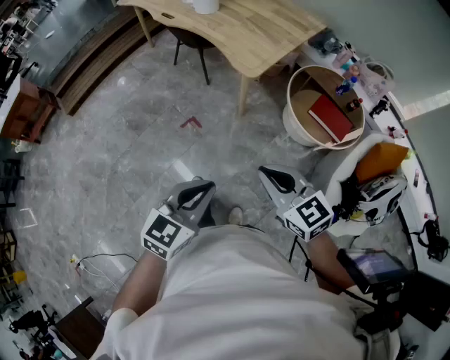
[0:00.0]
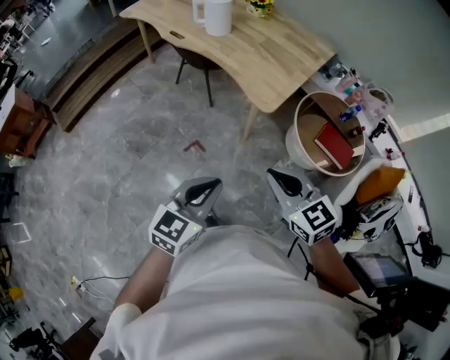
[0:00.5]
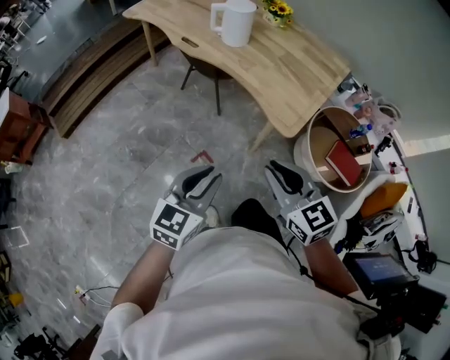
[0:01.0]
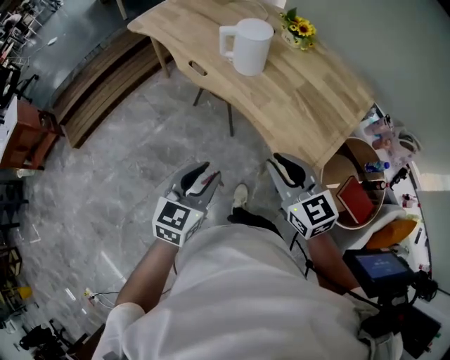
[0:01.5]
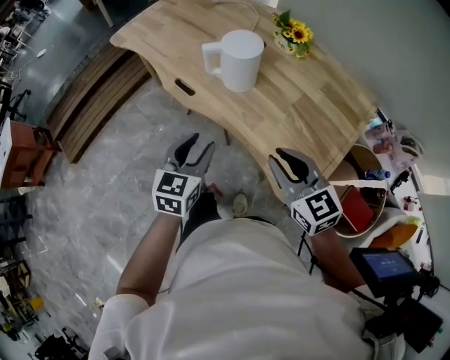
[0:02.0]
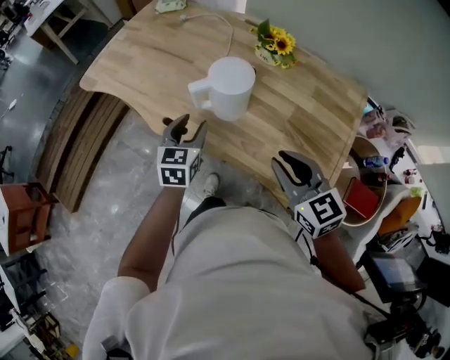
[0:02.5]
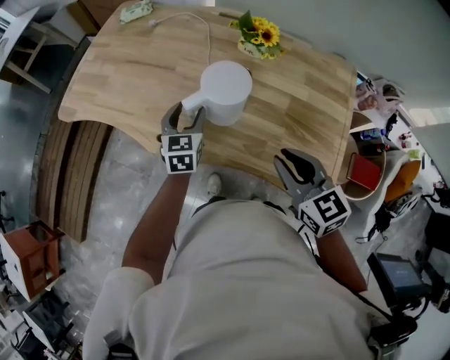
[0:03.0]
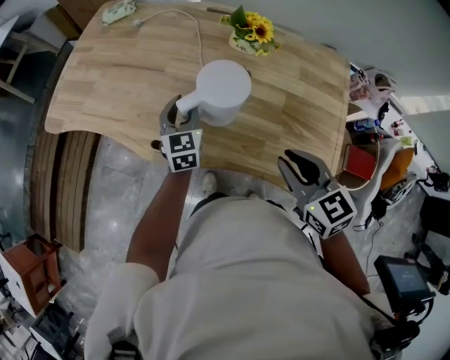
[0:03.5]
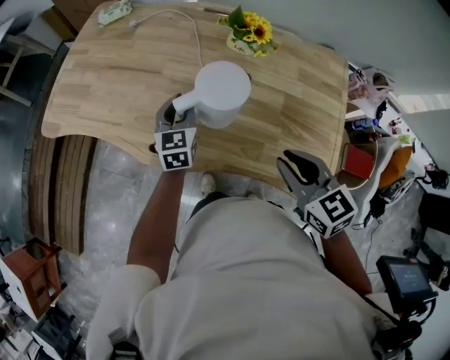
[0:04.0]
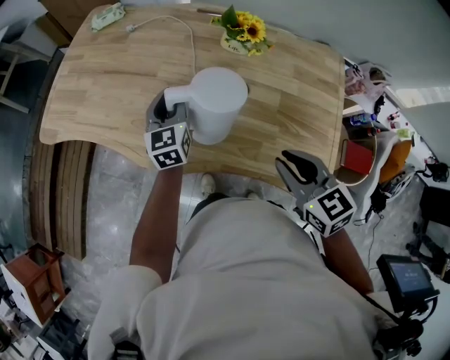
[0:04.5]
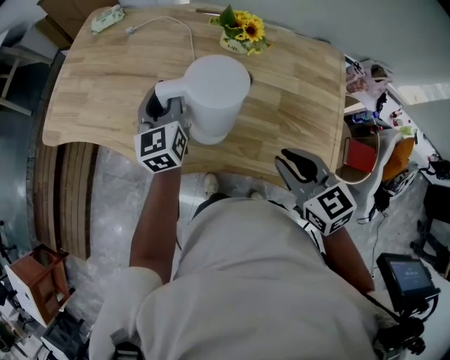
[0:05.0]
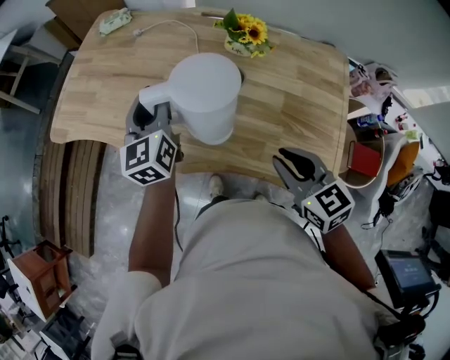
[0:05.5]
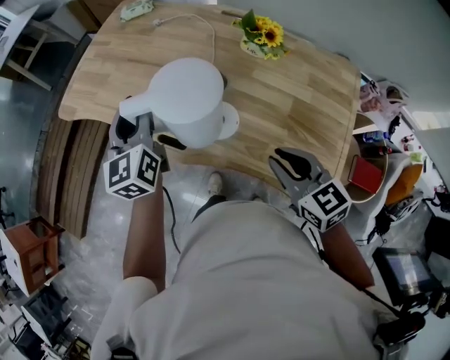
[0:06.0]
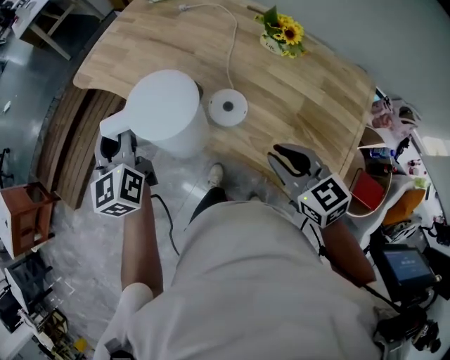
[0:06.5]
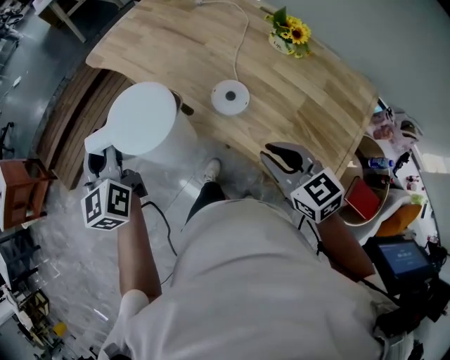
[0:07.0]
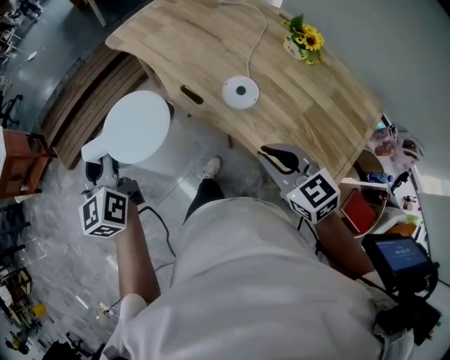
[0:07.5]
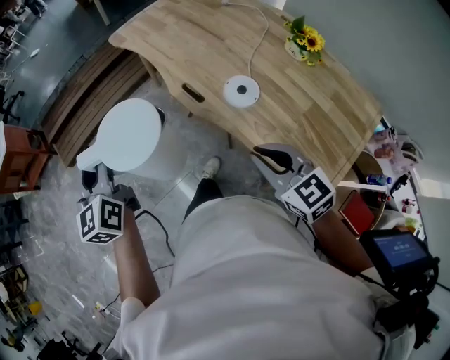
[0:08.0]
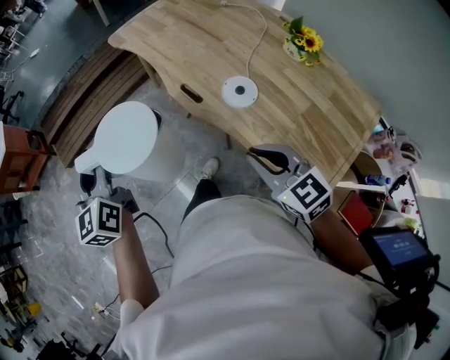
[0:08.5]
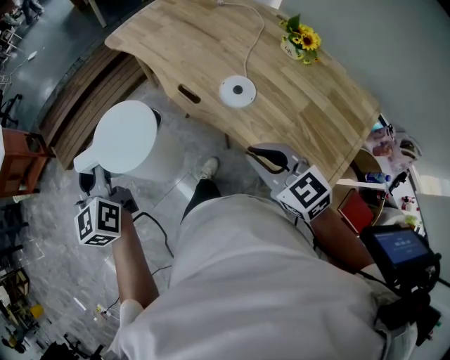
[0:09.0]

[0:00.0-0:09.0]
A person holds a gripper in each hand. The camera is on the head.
0:00.0 to 0:02.0: The pair of grippers is taken forward, approximately 70 cm. The left gripper opens its fingers.
0:02.0 to 0:04.5: The right gripper goes roughly 15 cm forward, and swivels about 30 degrees, while the left gripper shifts about 40 cm forward.
0:04.5 to 0:07.0: The left gripper changes place by approximately 40 cm, and swivels roughly 40 degrees; the right gripper moves some 5 cm, and changes its angle by roughly 30 degrees.
0:07.0 to 0:09.0: The left gripper goes about 15 cm to the left and backward. Meanwhile the right gripper goes some 5 cm to the left.

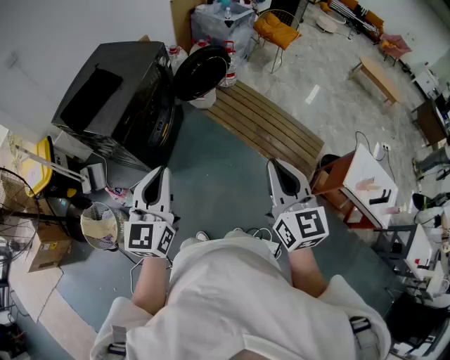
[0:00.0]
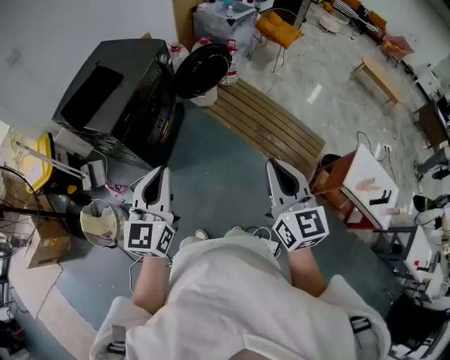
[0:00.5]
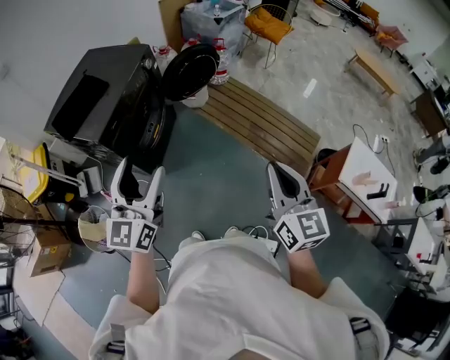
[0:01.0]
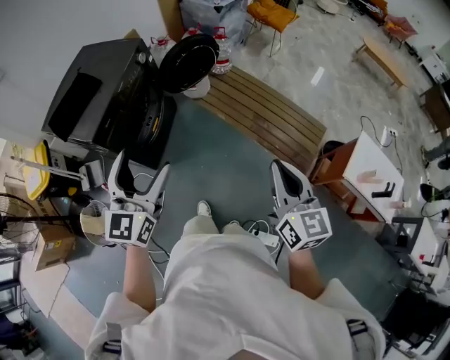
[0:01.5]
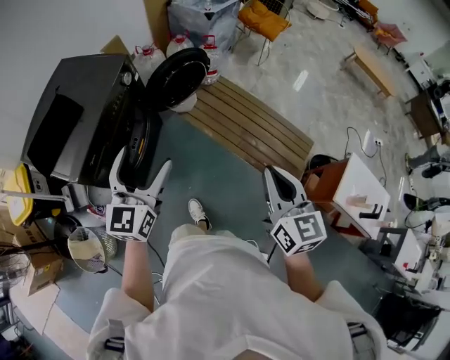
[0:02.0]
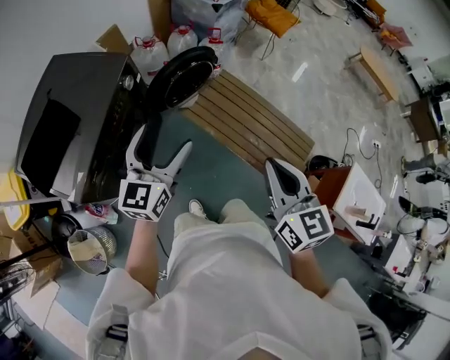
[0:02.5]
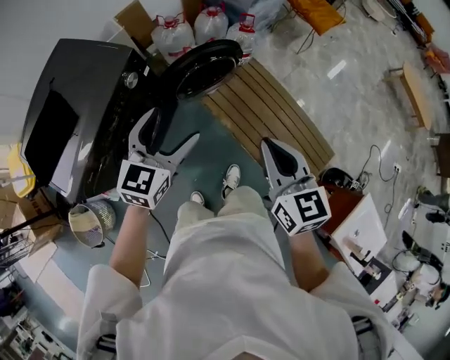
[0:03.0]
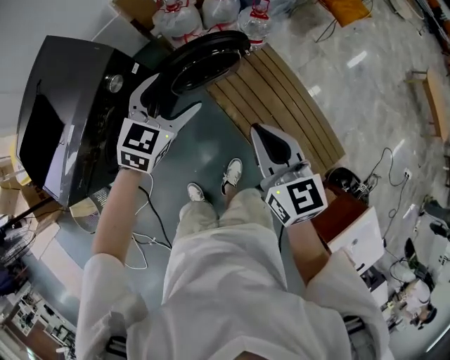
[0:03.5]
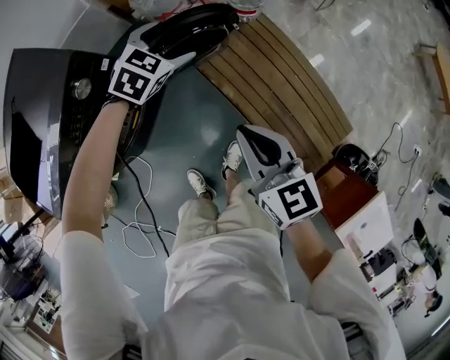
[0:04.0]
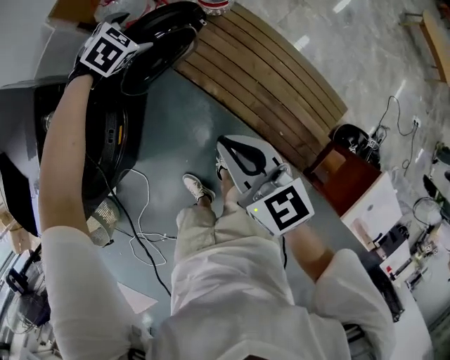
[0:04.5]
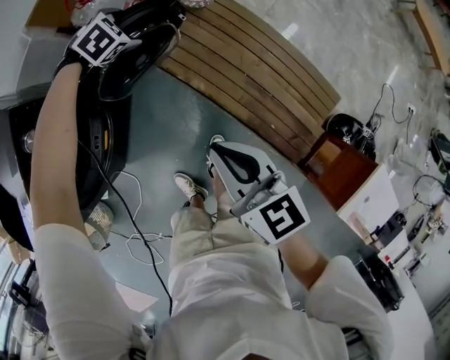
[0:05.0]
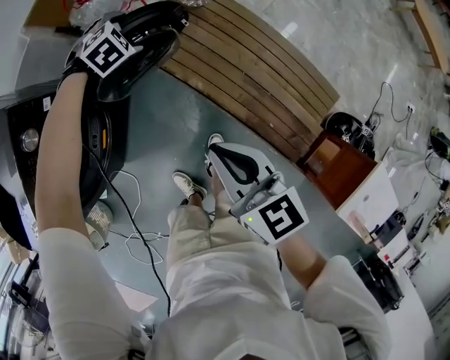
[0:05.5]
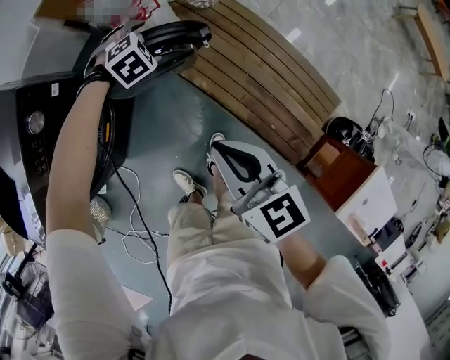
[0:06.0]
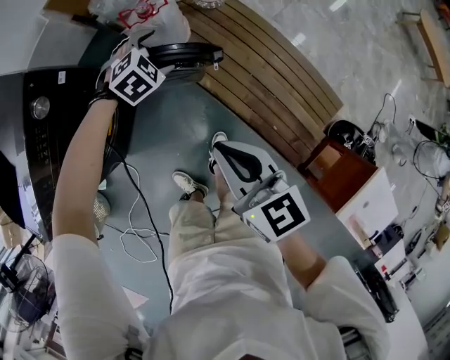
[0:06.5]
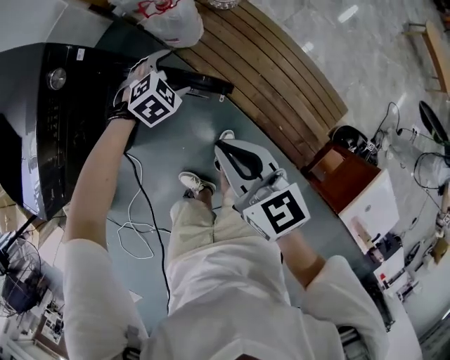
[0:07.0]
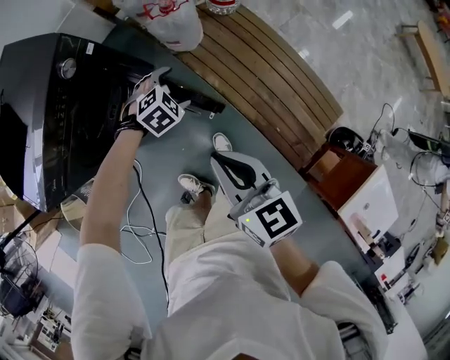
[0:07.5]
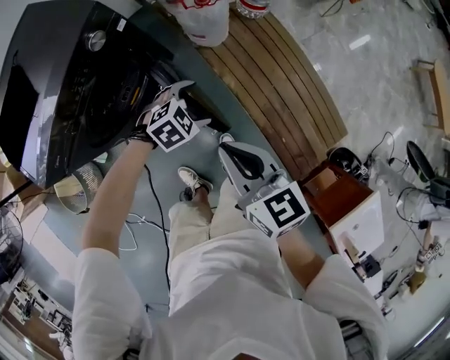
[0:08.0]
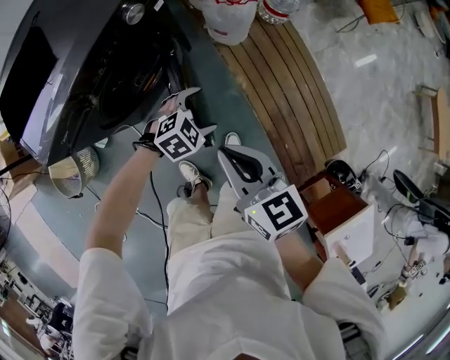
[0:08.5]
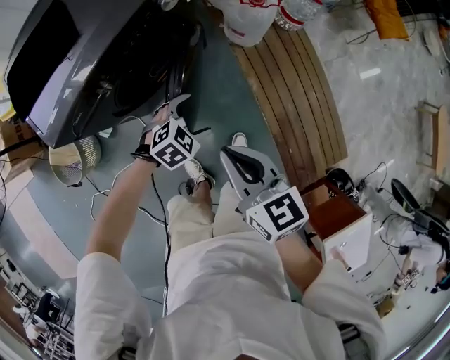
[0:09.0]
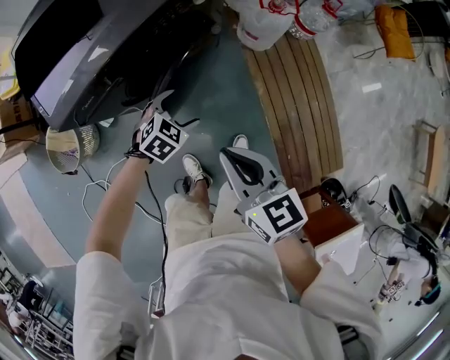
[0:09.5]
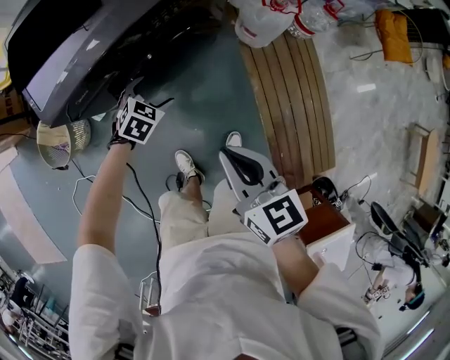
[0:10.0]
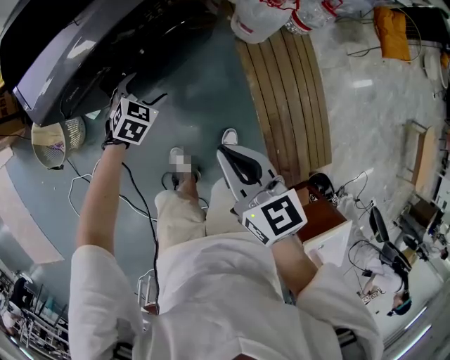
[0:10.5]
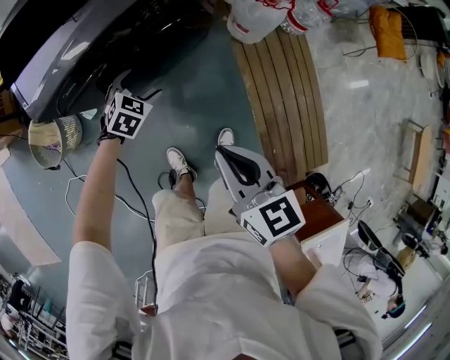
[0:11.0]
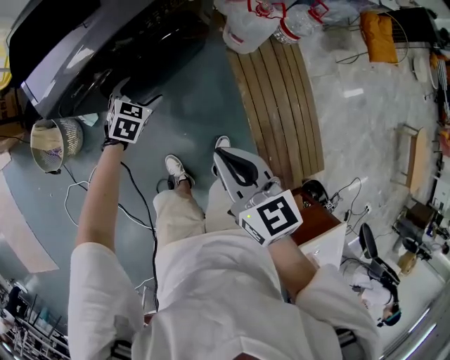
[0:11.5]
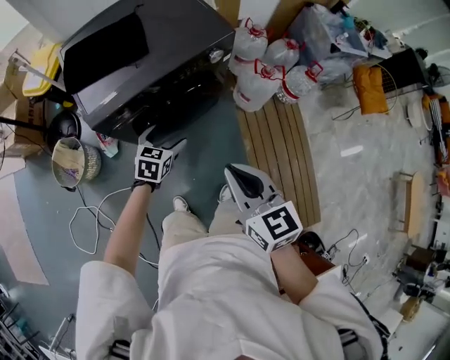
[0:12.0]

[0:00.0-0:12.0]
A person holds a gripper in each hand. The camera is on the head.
0:00.0 to 0:02.0: The left gripper goes roughly 25 cm forward, and opens. Meanwhile the right gripper moves forward and to the right, about 20 cm.
0:02.0 to 0:04.0: Both grippers are carried forward, about 50 cm. The grippers both shift downward by about 25 cm. The right gripper swivels approximately 30 degrees. The left gripper angles its fingers downward, by some 40 degrees.
0:04.0 to 0:06.0: The left gripper is displaced downward by some 15 cm, and turns by about 40 degrees. Meanwhile the right gripper moves some 5 cm.
0:06.0 to 0:08.0: The right gripper heads to the left and backward, covering roughly 15 cm; the left gripper goes some 25 cm backward, and changes its angle by roughly 30 degrees.
0:08.0 to 0:10.0: The right gripper shifts by roughly 20 cm. Meanwhile the left gripper moves some 35 cm, and rotates roughly 40 degrees.
0:10.0 to 0:12.0: The grippers both shift upward by some 15 cm. The left gripper rotates roughly 30 degrees.

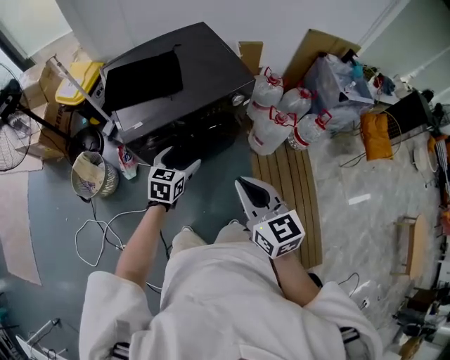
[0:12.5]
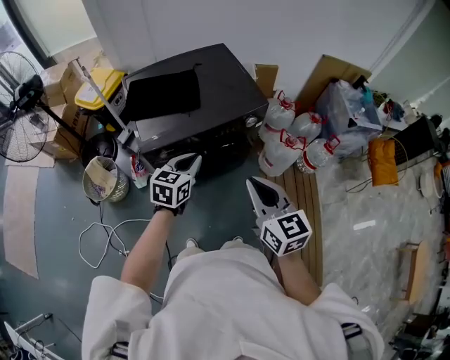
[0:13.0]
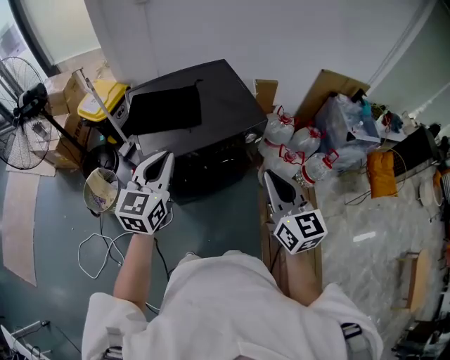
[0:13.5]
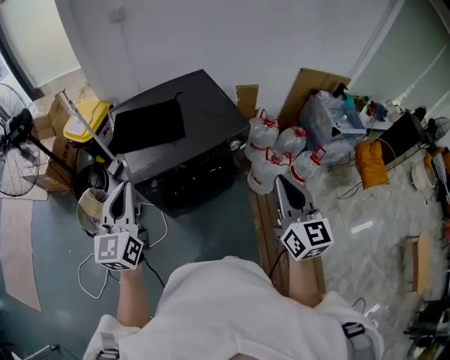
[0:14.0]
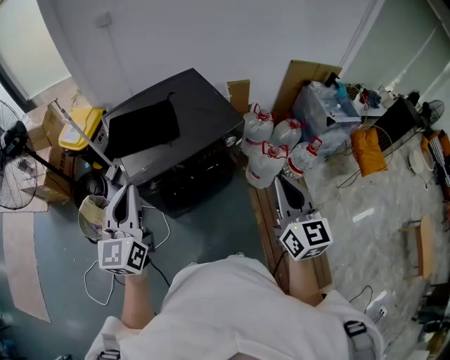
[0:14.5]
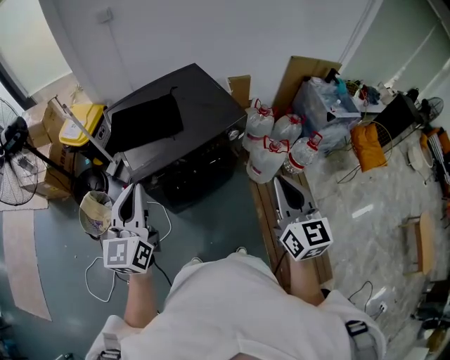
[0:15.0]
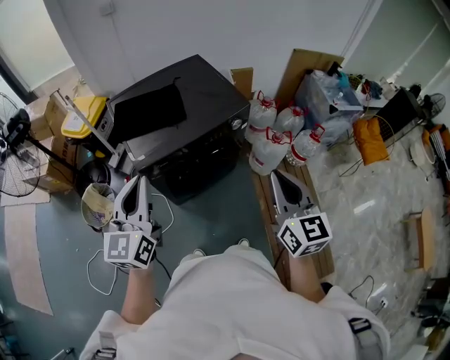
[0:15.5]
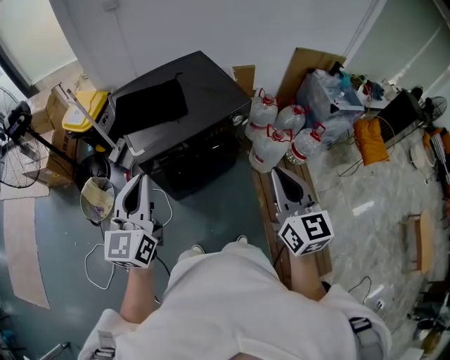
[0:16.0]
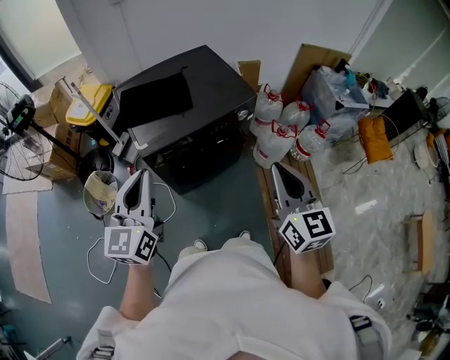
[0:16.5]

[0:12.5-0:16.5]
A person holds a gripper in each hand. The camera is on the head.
0:12.5 to 0:14.5: The left gripper shifts about 30 cm upward and to the left, tips its fingers upward by about 30 degrees, and closes, while the right gripper travels upward and to the right by roughly 15 cm, and swivels approximately 20 degrees.
0:14.5 to 0:16.5: The right gripper heads to the left and backward, covering roughly 10 cm. Meanwhile the left gripper travels backward by roughly 5 cm.

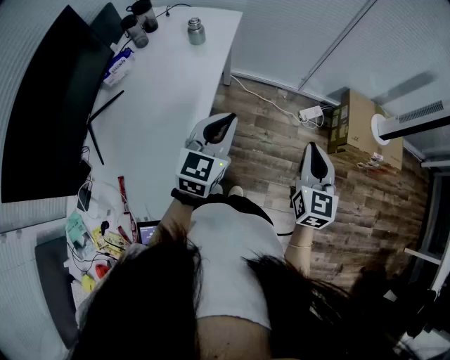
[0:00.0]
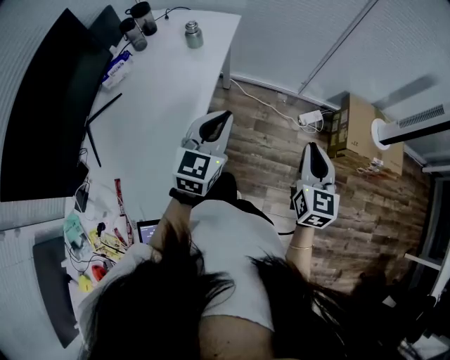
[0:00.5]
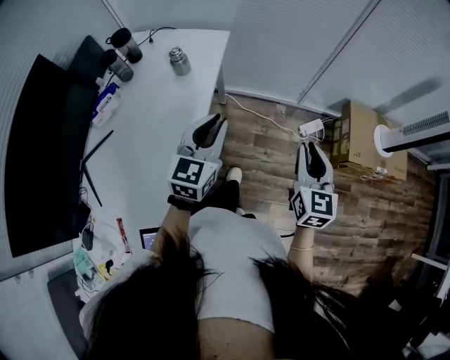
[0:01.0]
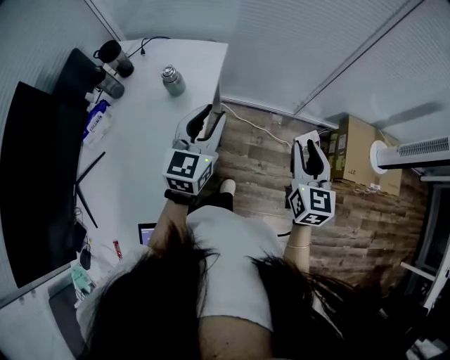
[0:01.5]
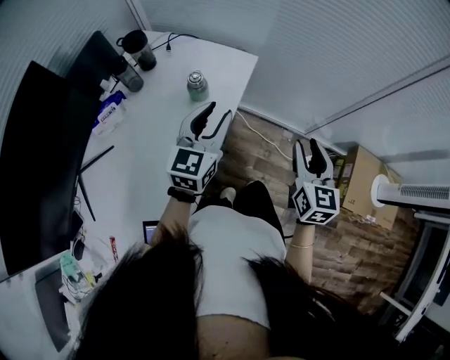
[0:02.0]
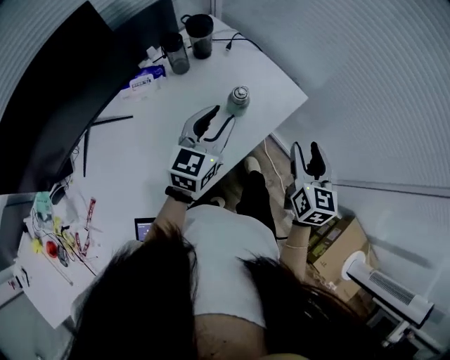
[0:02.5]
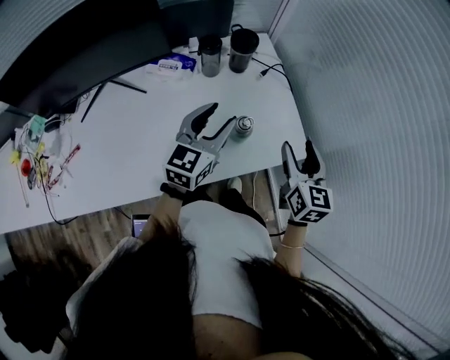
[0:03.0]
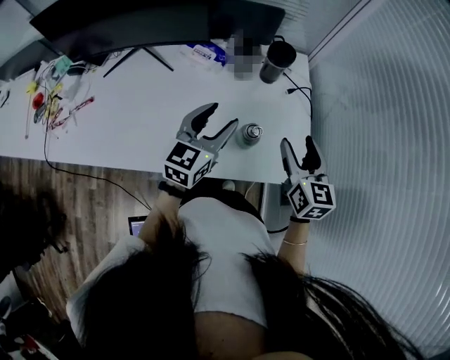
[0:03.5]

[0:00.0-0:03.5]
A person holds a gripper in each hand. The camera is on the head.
0:00.0 to 0:02.0: Both grippers move forward, approximately 35 cm. The right gripper opens its fingers.
0:02.0 to 0:03.5: The left gripper ends up some 15 cm from where it was, and rotates approximately 60 degrees. The right gripper ends up approximately 40 cm from where it was, turns by some 80 degrees, and opens up.
